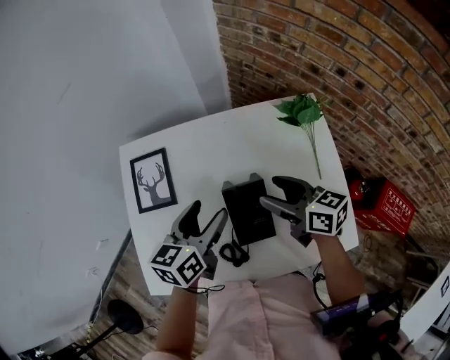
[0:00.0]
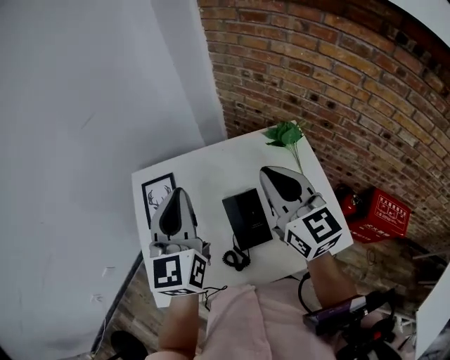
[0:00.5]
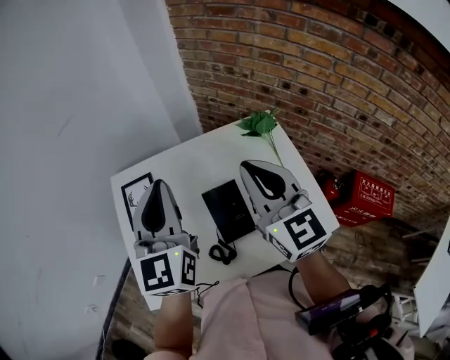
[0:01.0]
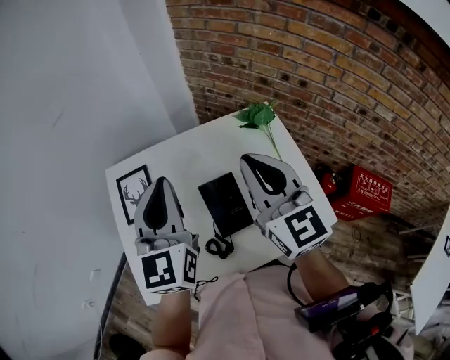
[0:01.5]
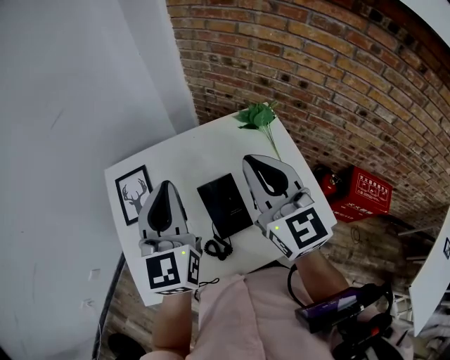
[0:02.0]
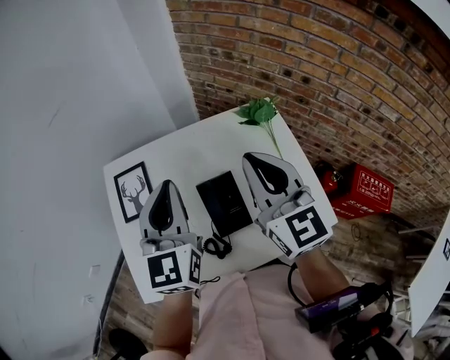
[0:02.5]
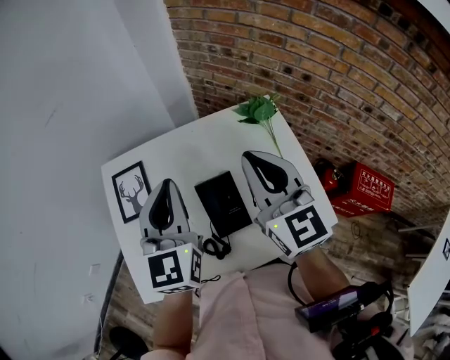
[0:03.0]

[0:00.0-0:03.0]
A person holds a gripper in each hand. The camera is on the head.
0:00.0 to 0:01.5: Both grippers move upward, roughly 20 cm. The right gripper changes its angle by some 50 degrees, and closes up. The left gripper changes its angle by about 40 degrees, and closes its fingers.
0:01.5 to 0:03.0: There are only small adjustments of the grippers.

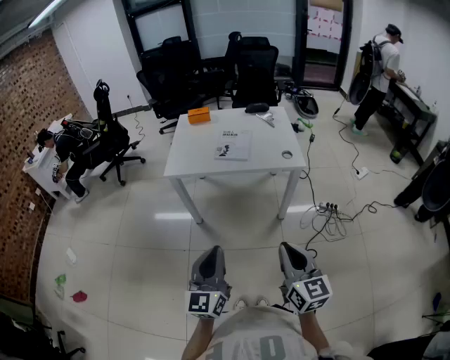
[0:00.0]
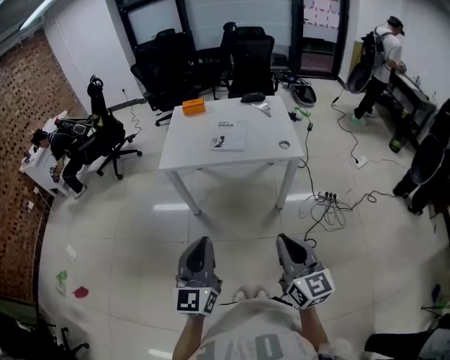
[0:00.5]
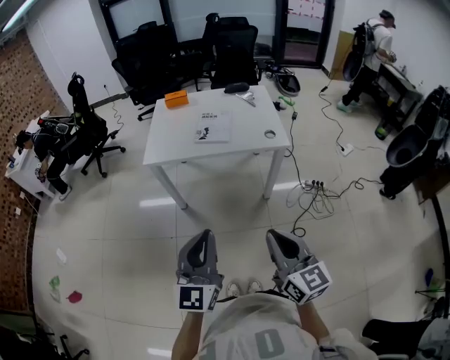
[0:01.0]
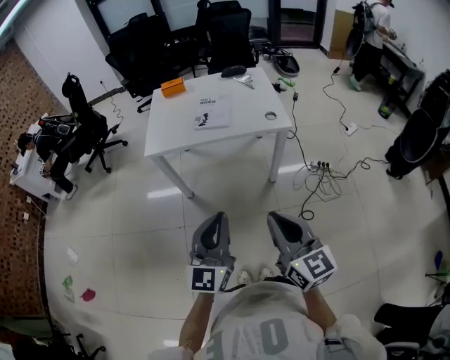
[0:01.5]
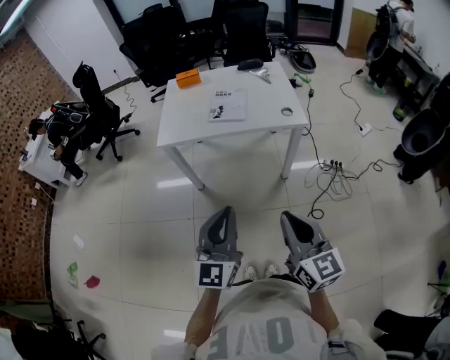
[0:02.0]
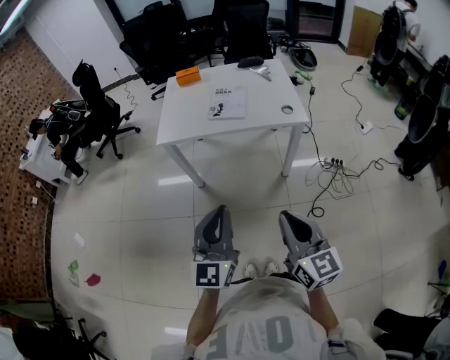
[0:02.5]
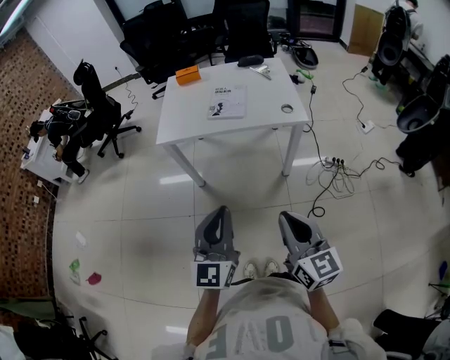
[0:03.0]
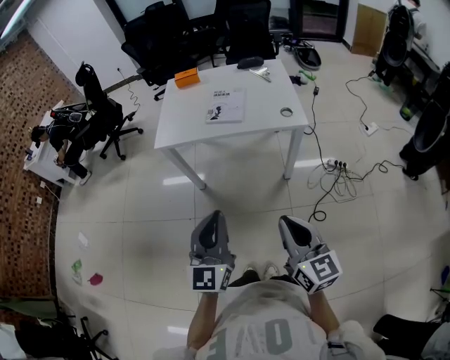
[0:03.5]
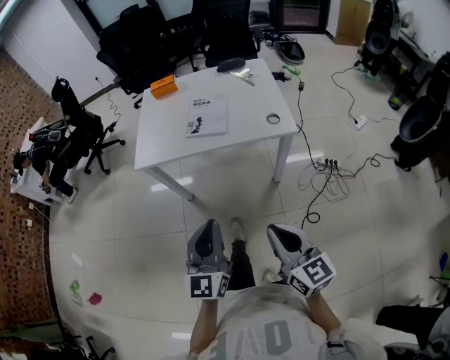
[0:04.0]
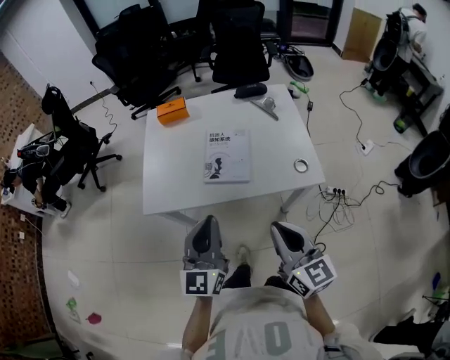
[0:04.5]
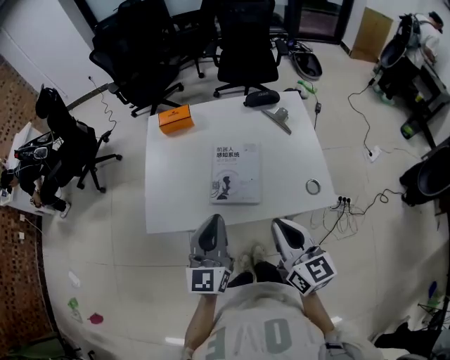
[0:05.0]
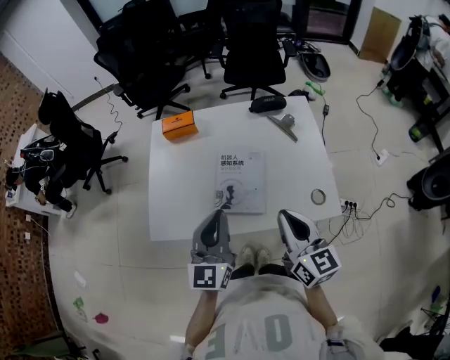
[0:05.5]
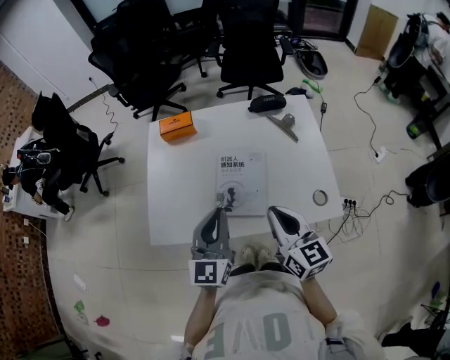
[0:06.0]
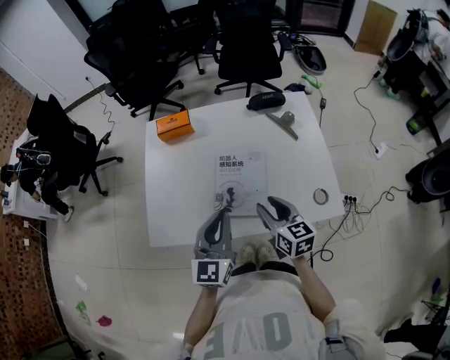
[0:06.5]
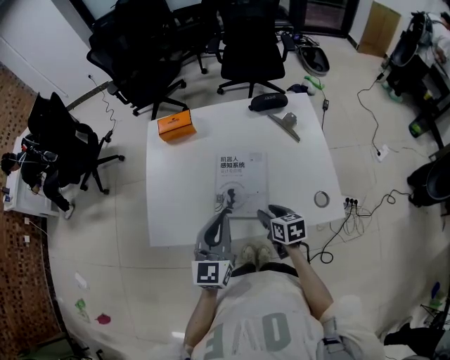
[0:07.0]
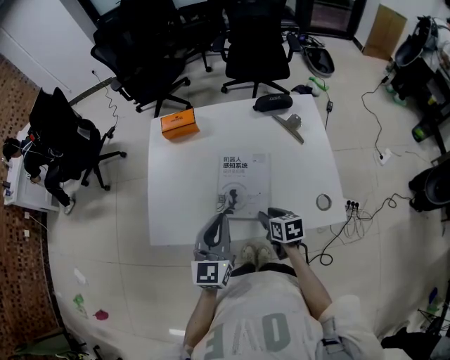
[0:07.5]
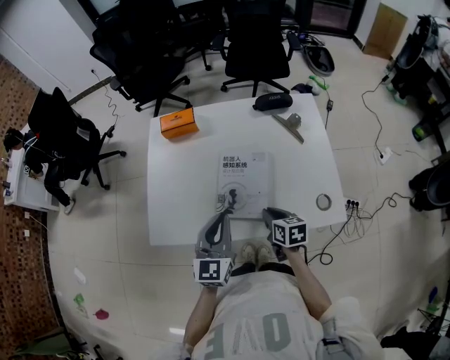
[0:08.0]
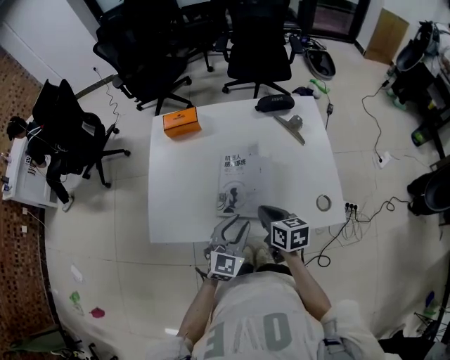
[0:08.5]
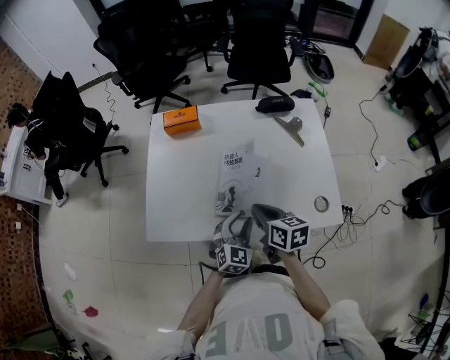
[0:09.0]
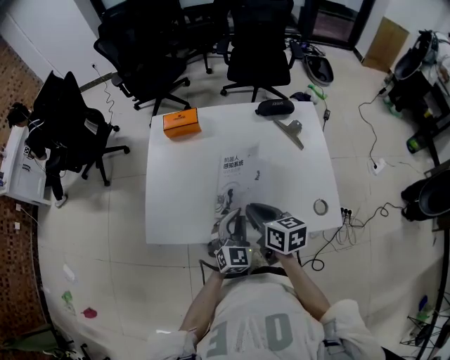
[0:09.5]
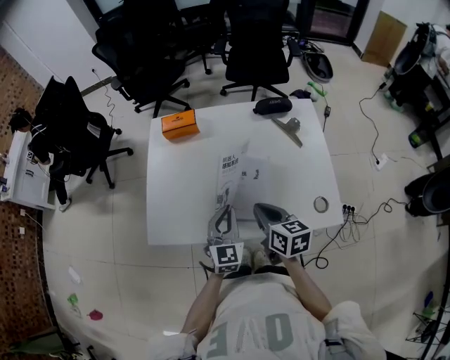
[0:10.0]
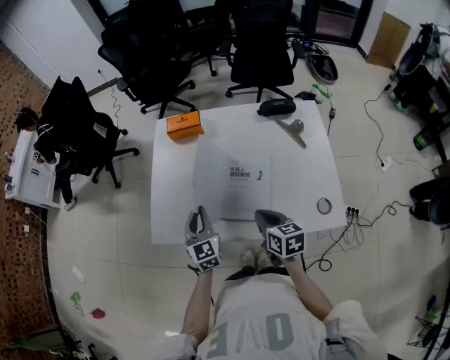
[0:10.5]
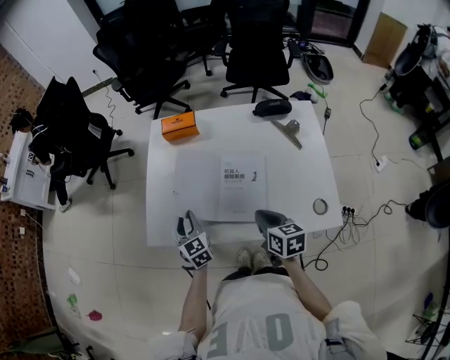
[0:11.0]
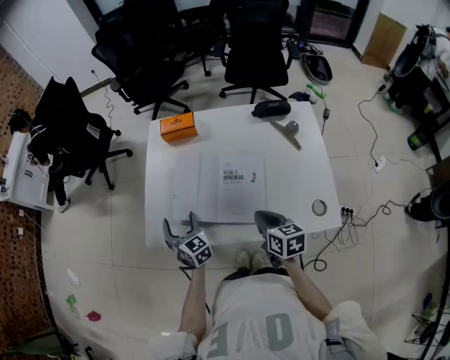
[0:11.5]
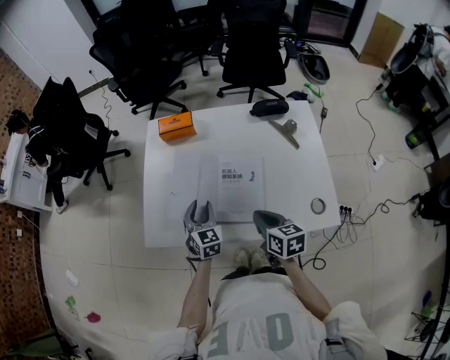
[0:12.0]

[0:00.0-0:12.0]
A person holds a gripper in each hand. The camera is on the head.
0:00.0 to 0:02.0: The left gripper shifts by approximately 5 cm.
0:02.0 to 0:04.0: The left gripper goes approximately 10 cm forward, while the right gripper shifts about 10 cm forward and downward.
0:04.0 to 0:06.0: The pair of grippers is taken forward, approximately 40 cm.
0:06.0 to 0:08.0: The right gripper goes roughly 20 cm downward, tilts its fingers some 30 degrees downward, and opens and closes again, while the left gripper travels downward by approximately 5 cm.
0:08.0 to 0:10.0: The right gripper shifts approximately 10 cm upward, while the left gripper travels downward by roughly 5 cm, and opens, then closes once more.
0:10.0 to 0:12.0: The left gripper shifts about 10 cm forward, to the left and downward, and opens its fingers.

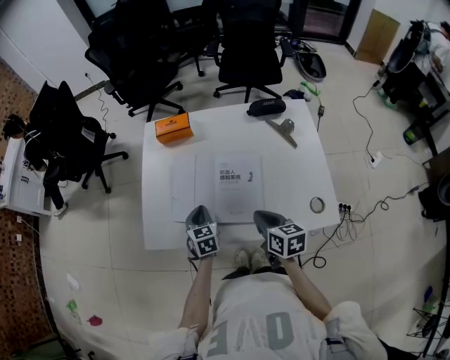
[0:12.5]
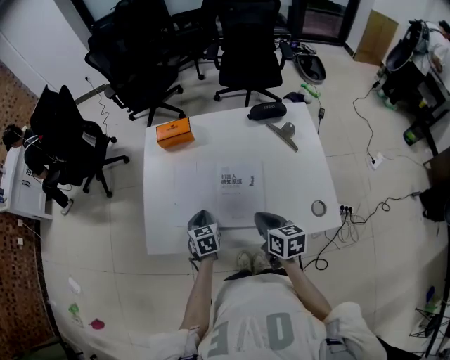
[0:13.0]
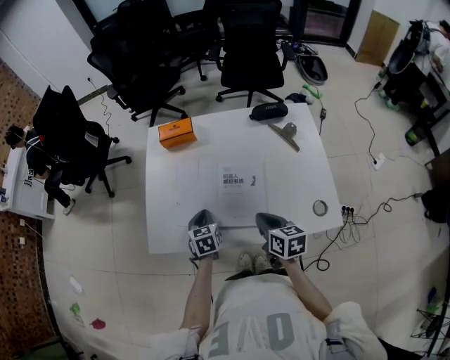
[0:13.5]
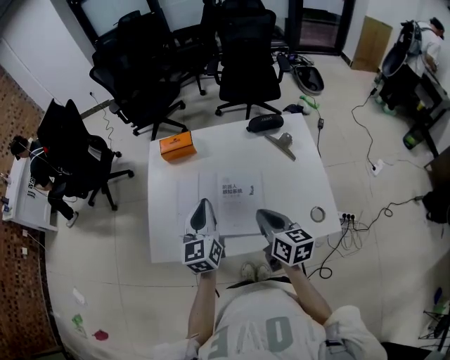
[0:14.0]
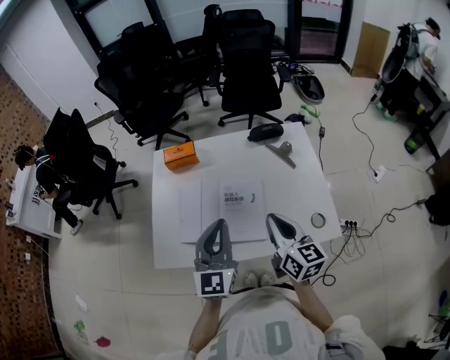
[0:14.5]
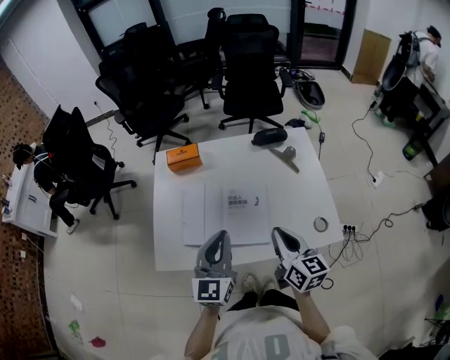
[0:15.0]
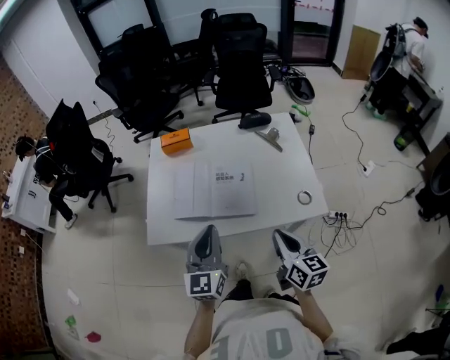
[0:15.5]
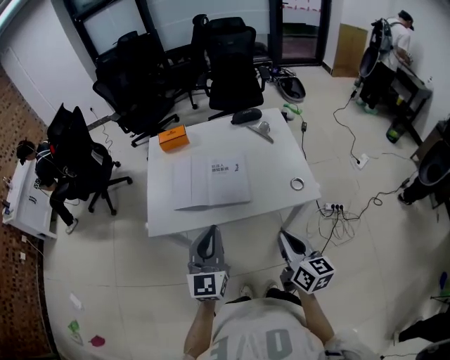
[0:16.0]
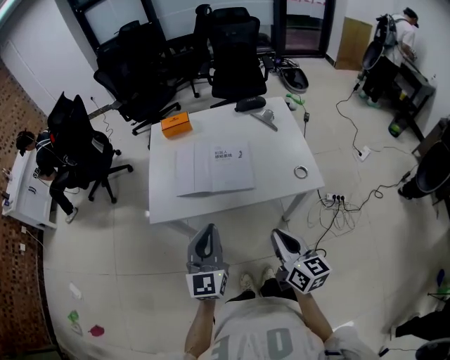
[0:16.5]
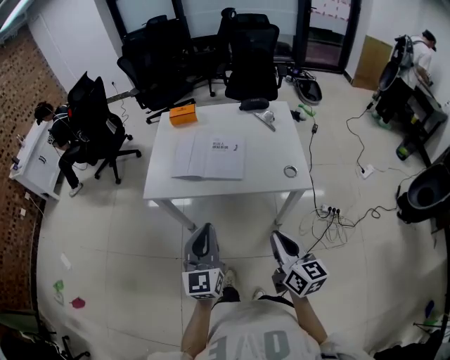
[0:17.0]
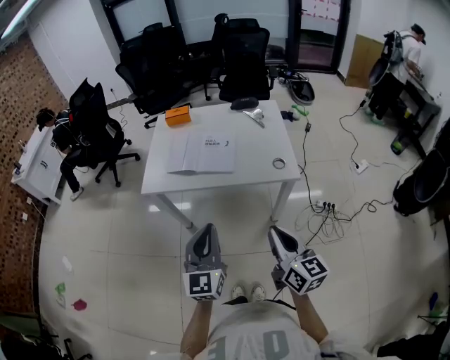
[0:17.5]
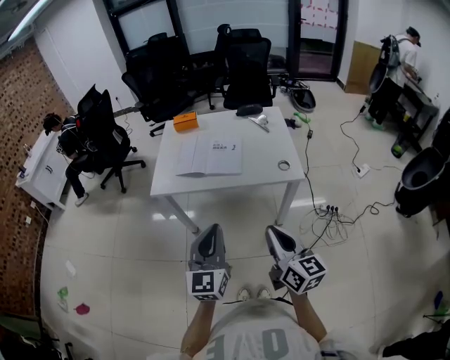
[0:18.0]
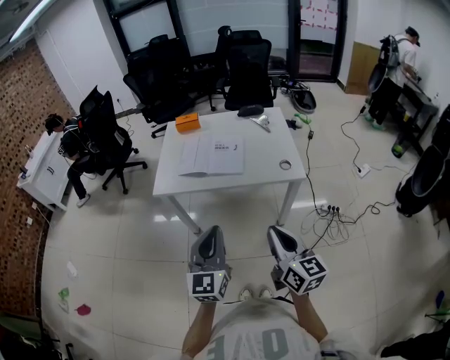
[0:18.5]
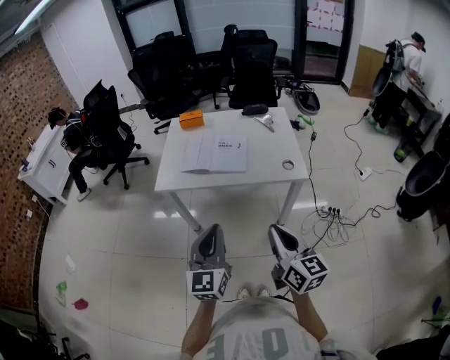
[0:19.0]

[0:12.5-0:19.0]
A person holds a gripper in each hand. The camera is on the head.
0:12.5 to 0:14.5: The left gripper goes approximately 25 cm upward, and tilts its fingers roughly 40 degrees upward. The right gripper heads upward, covering some 15 cm, and rotates roughly 30 degrees.
0:14.5 to 0:17.0: The two grippers go approximately 30 cm backward.
0:17.0 to 0:19.0: The right gripper goes some 10 cm backward and upward. The left gripper travels backward by about 10 cm.

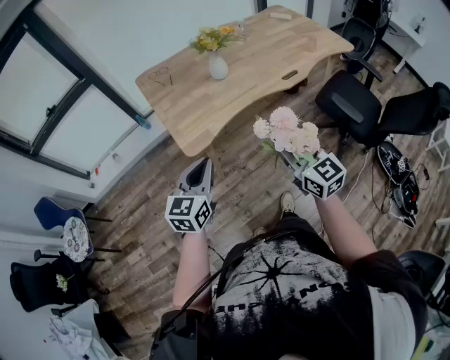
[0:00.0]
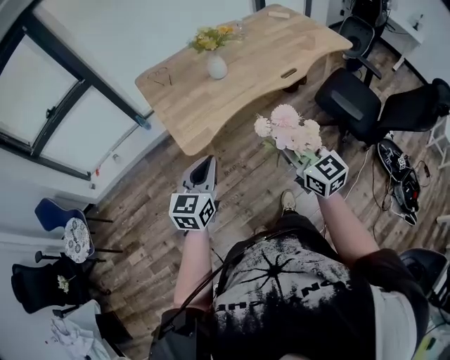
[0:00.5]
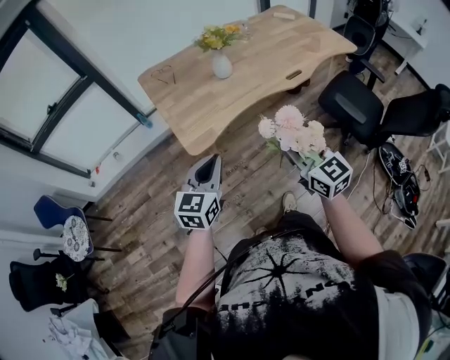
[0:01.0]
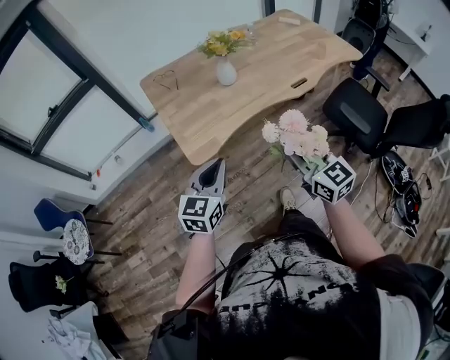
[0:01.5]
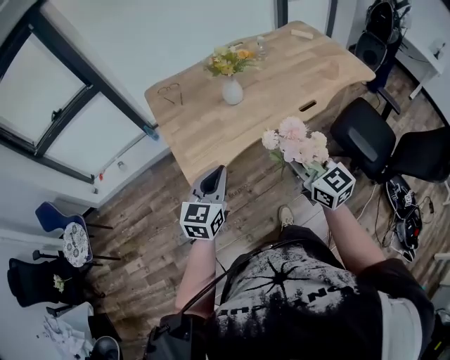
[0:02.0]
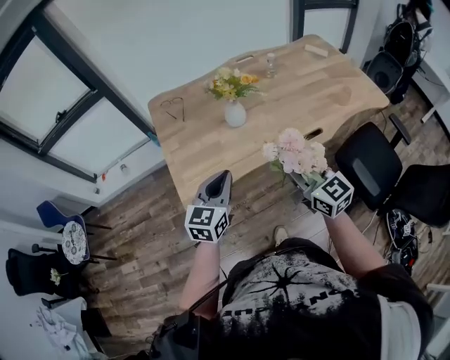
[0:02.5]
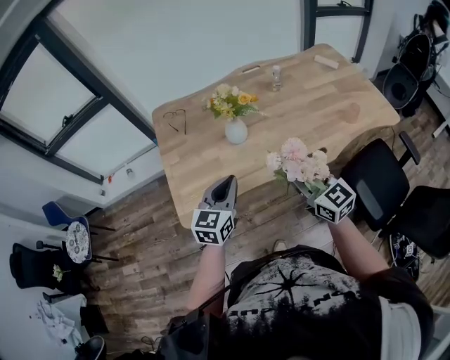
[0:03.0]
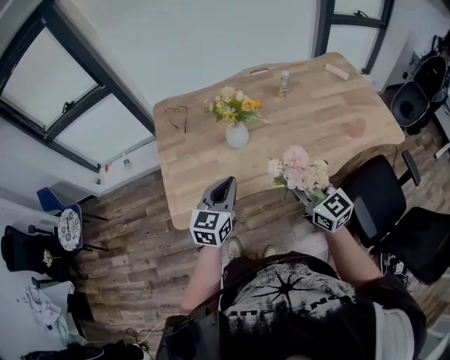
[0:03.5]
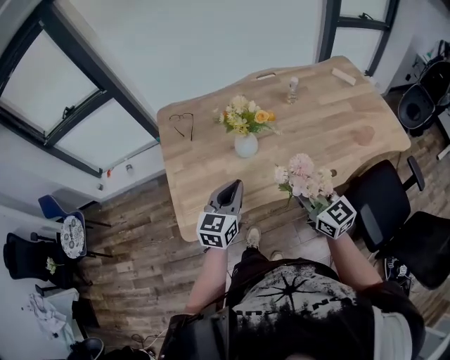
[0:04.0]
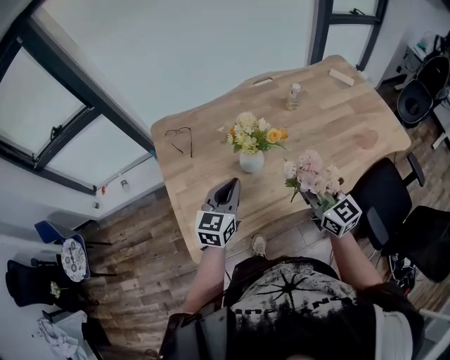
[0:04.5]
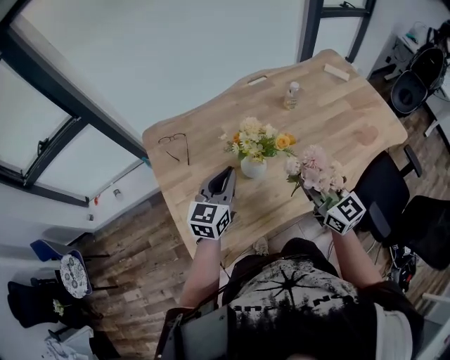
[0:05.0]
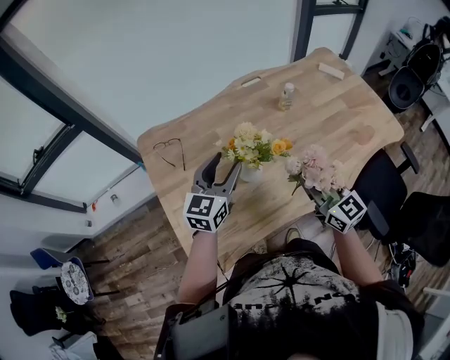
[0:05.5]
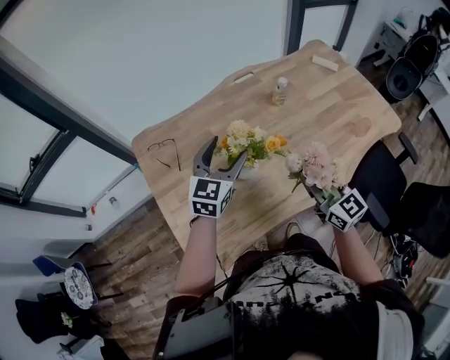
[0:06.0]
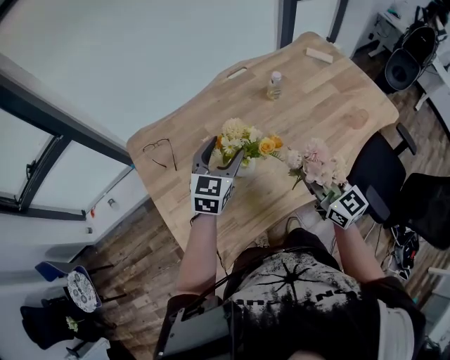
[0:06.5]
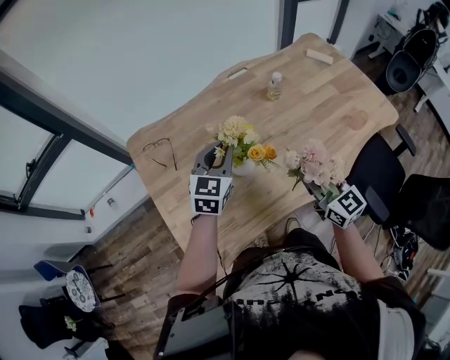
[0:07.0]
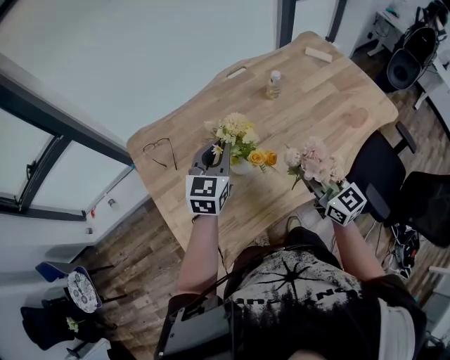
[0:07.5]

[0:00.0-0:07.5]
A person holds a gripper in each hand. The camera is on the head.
0:00.0 to 0:02.0: The two grippers go some 10 cm forward.
0:02.0 to 0:04.0: The two grippers go about 25 cm forward and to the right.
0:04.0 to 0:05.5: The left gripper heads forward, covering some 20 cm, and opens up; the right gripper goes approximately 10 cm forward.
0:05.5 to 0:07.5: The left gripper closes up.
